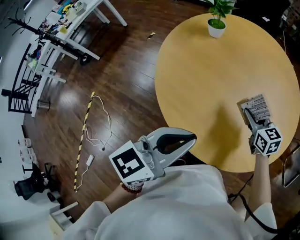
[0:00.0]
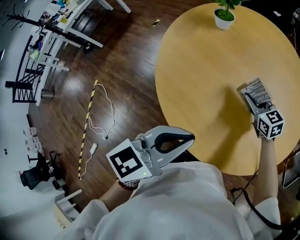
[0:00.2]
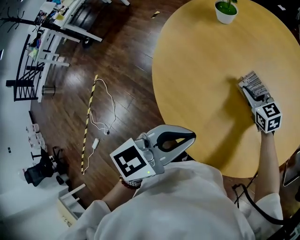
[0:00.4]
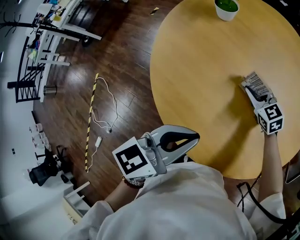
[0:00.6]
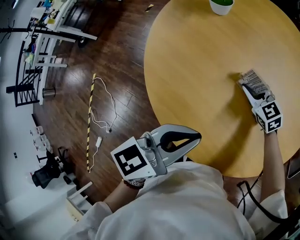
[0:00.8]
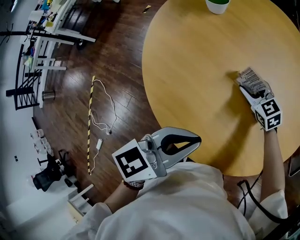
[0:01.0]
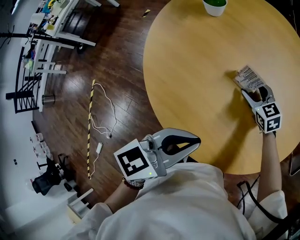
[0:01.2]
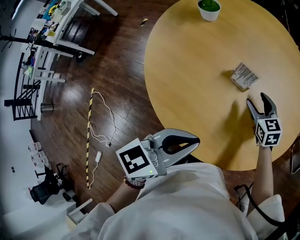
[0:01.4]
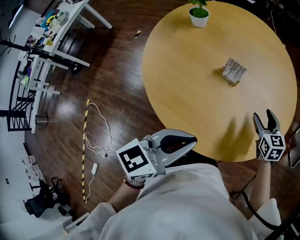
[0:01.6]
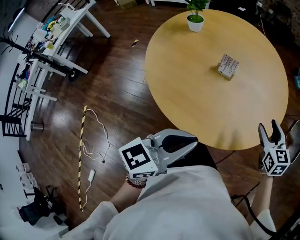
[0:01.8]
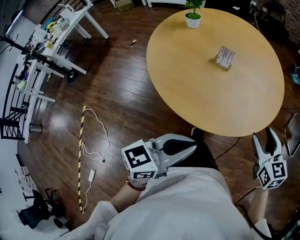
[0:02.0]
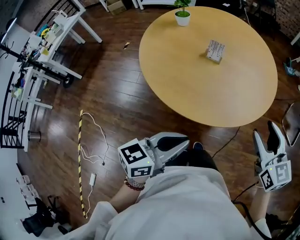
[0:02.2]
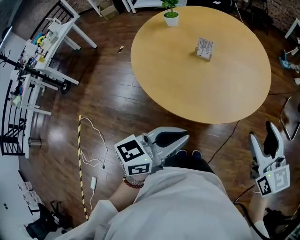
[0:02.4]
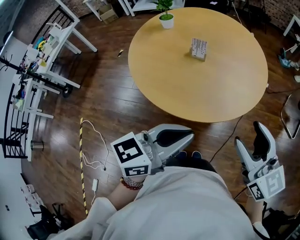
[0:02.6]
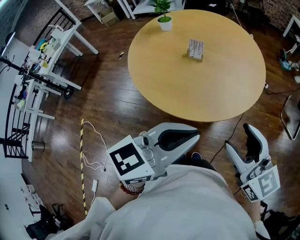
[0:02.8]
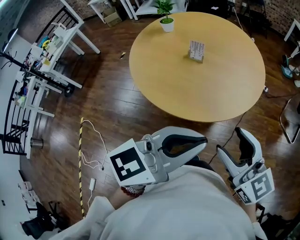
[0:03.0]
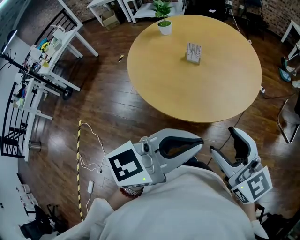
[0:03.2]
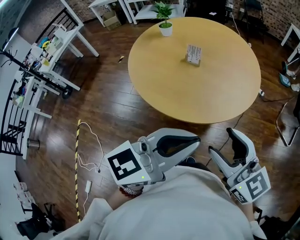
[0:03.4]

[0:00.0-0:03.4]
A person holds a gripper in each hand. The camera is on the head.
0:00.0 to 0:01.6: The right gripper shifts approximately 10 cm to the right, turns by roughly 20 degrees, and opens up. Meanwhile the left gripper heads downward, covering roughly 5 cm.
0:01.6 to 0:03.4: The left gripper heads backward, to the right and upward, covering about 30 cm. The right gripper travels backward and upward by some 50 cm, and rotates about 40 degrees.

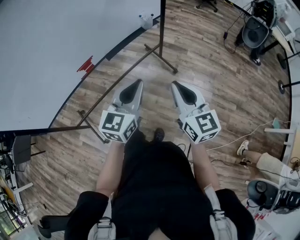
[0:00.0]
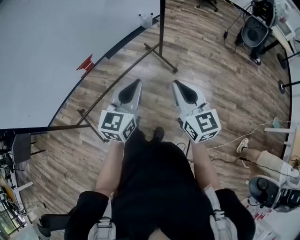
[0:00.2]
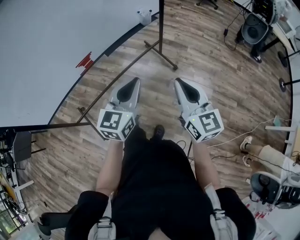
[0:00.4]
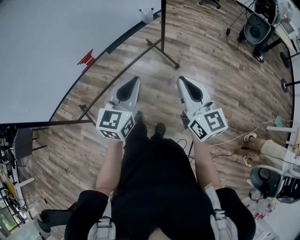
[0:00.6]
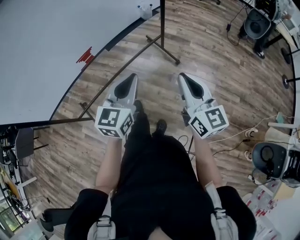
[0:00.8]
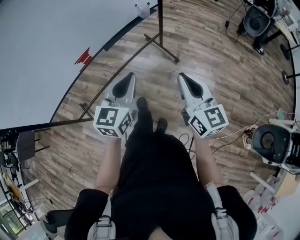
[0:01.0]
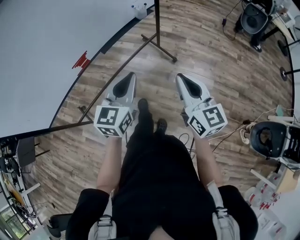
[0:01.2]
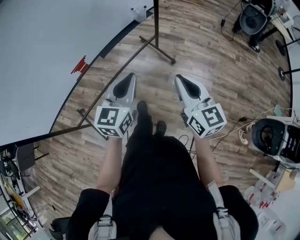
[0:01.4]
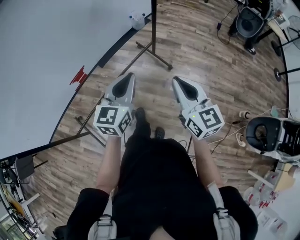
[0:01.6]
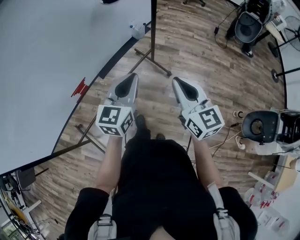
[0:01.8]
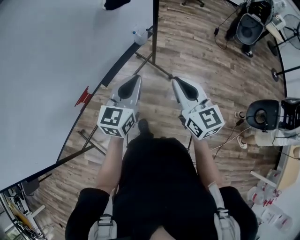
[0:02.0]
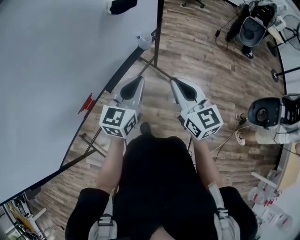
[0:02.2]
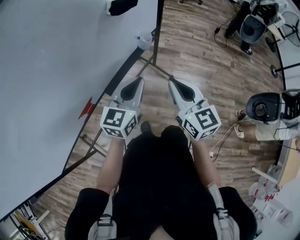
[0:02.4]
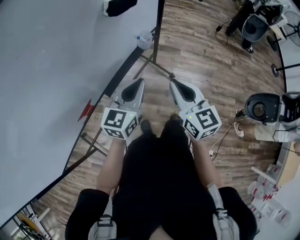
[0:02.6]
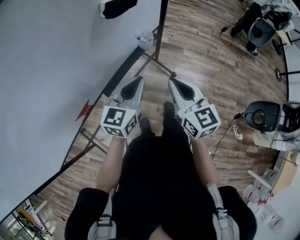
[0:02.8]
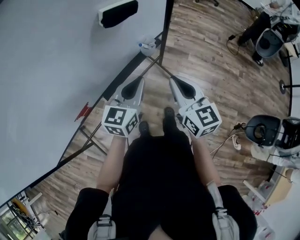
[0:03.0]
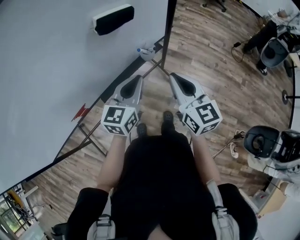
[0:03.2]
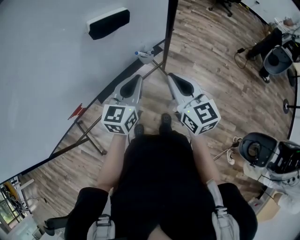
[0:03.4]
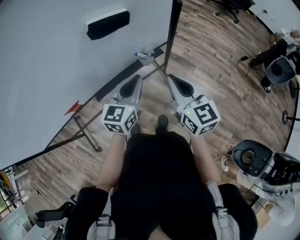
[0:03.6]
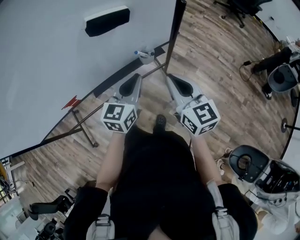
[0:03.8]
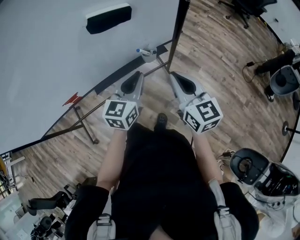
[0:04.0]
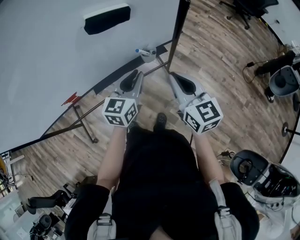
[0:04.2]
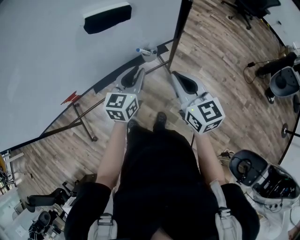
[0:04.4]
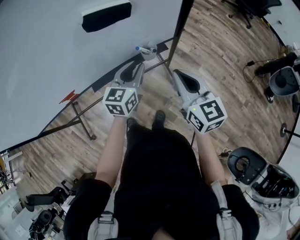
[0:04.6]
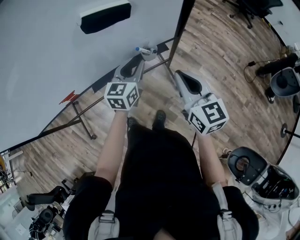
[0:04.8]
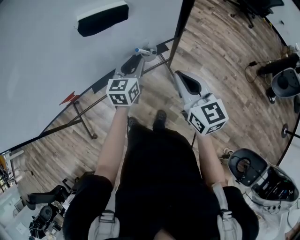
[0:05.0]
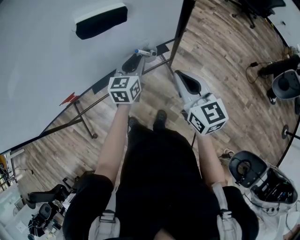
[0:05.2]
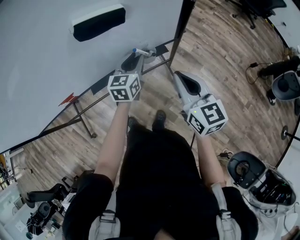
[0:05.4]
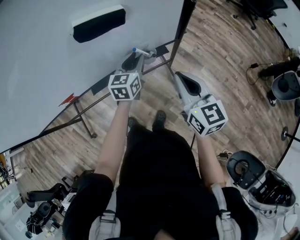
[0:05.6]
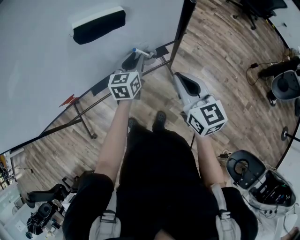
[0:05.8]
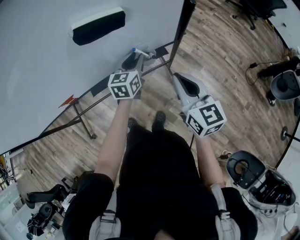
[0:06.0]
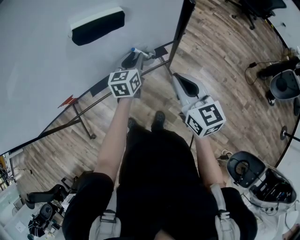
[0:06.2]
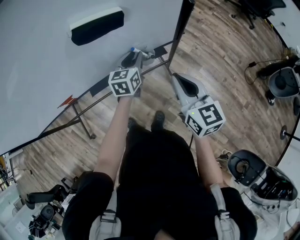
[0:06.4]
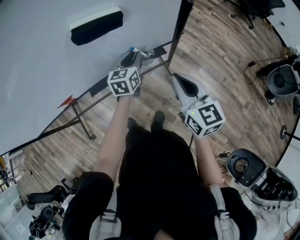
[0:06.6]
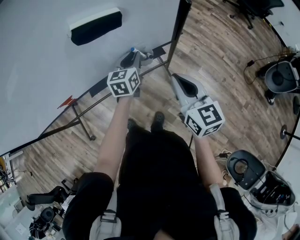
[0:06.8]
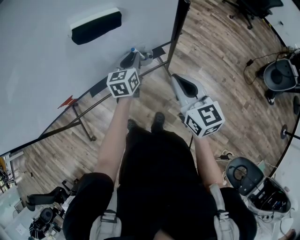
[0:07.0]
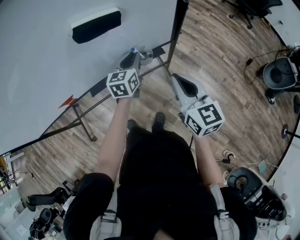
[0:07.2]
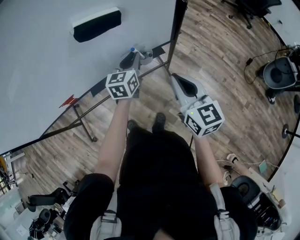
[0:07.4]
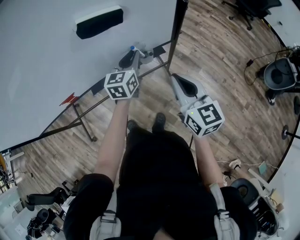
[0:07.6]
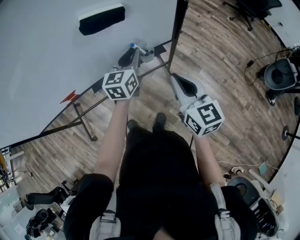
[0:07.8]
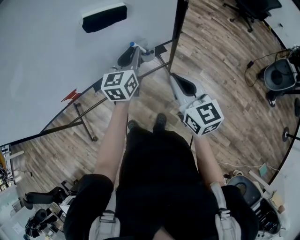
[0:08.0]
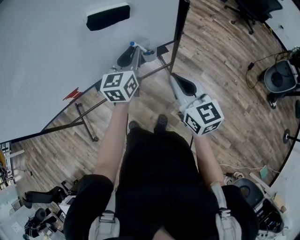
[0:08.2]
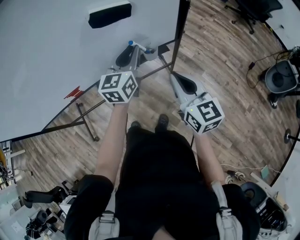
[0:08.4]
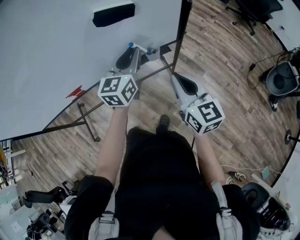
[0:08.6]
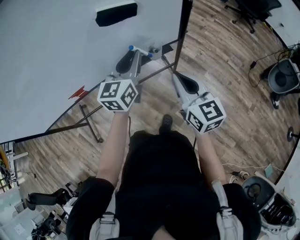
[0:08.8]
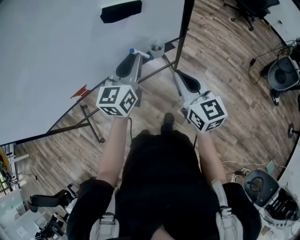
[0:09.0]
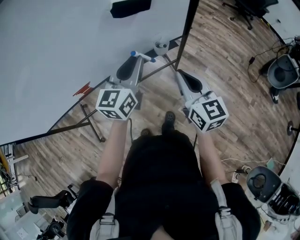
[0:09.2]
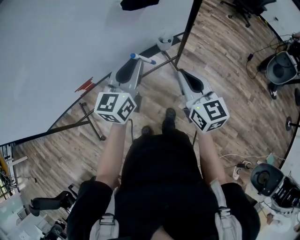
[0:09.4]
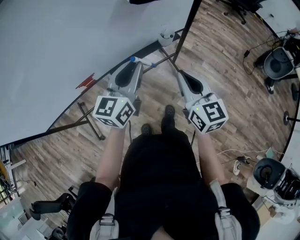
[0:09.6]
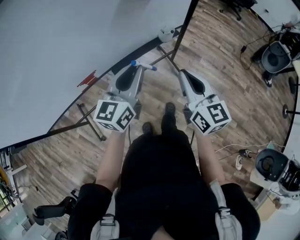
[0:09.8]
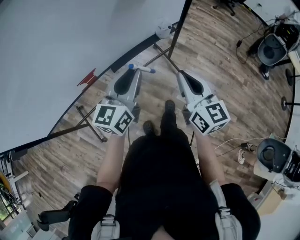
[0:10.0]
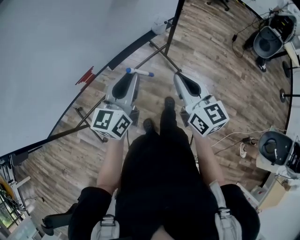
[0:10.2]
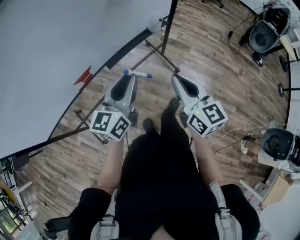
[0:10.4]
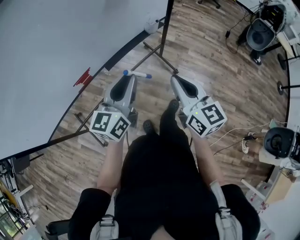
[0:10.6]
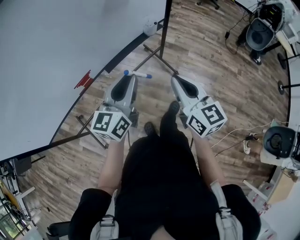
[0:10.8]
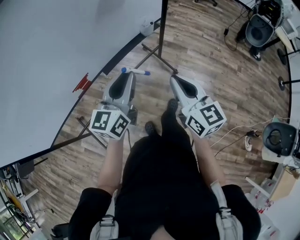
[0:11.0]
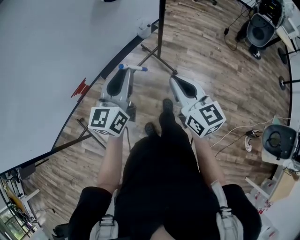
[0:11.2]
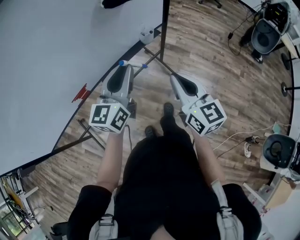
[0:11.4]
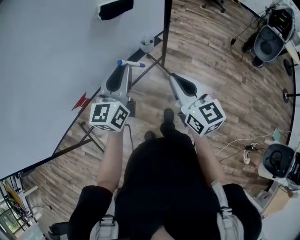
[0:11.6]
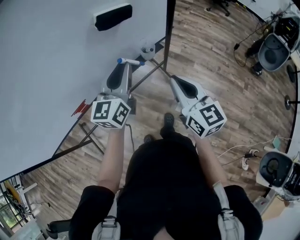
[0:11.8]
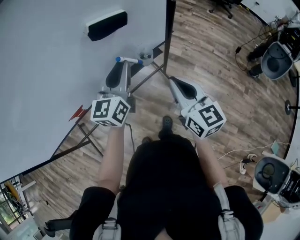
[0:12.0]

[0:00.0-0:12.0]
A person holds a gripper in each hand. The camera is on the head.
0:00.0 to 0:01.6: Both grippers travel together forward, approximately 10 cm.
0:01.6 to 0:03.0: Both grippers travel together forward, approximately 25 cm.
0:03.0 to 0:04.4: The two grippers go about 10 cm forward and to the right. The left gripper rotates about 20 degrees; the right gripper swivels approximately 20 degrees.
0:04.4 to 0:06.0: The left gripper travels forward by about 10 cm.
0:06.0 to 0:07.6: The grippers make only small movements.
0:07.6 to 0:09.0: The left gripper shifts approximately 15 cm upward, backward and to the left; the right gripper is displaced to the left and backward by about 5 cm.
0:09.0 to 0:10.4: The two grippers go roughly 25 cm backward and to the left.
0:10.4 to 0:12.0: The left gripper travels forward by about 25 cm, while the right gripper shifts approximately 25 cm forward and to the right.

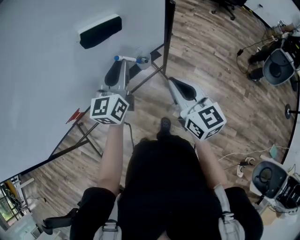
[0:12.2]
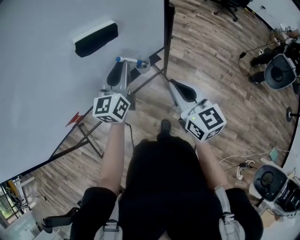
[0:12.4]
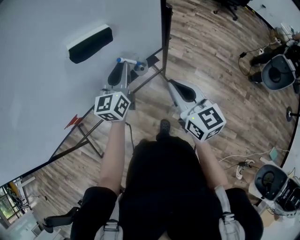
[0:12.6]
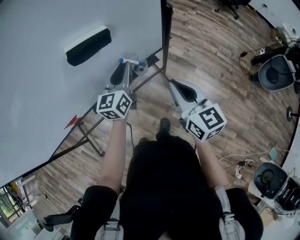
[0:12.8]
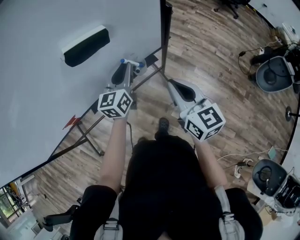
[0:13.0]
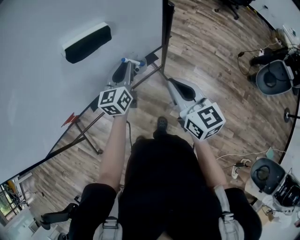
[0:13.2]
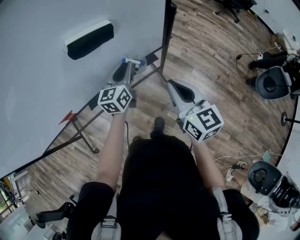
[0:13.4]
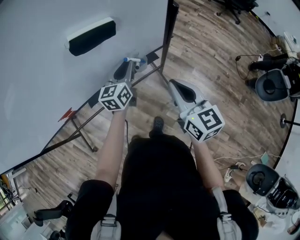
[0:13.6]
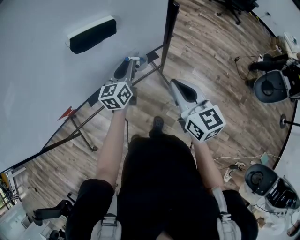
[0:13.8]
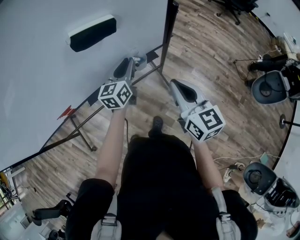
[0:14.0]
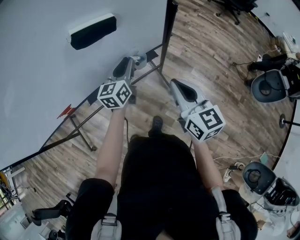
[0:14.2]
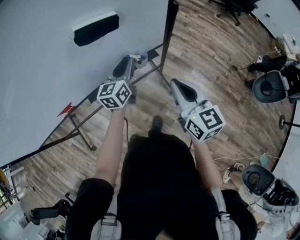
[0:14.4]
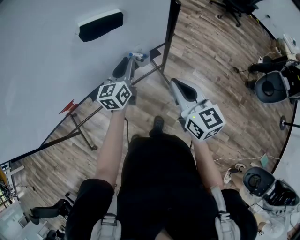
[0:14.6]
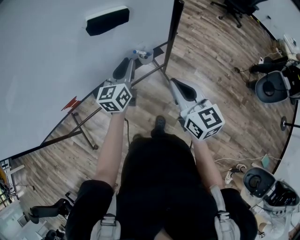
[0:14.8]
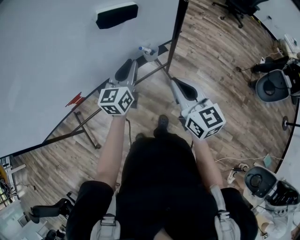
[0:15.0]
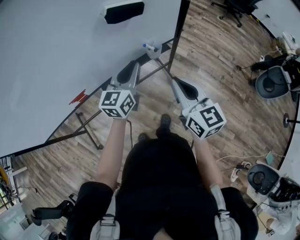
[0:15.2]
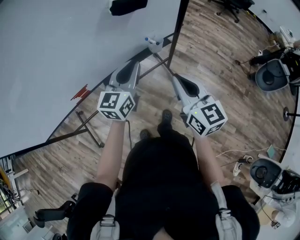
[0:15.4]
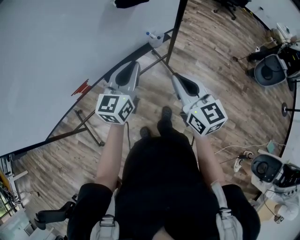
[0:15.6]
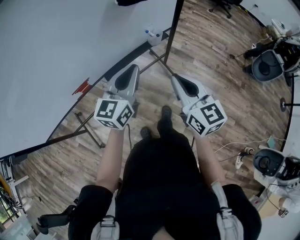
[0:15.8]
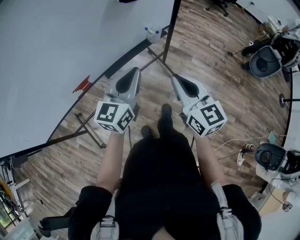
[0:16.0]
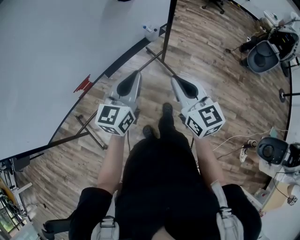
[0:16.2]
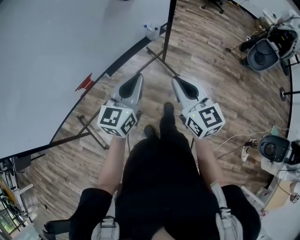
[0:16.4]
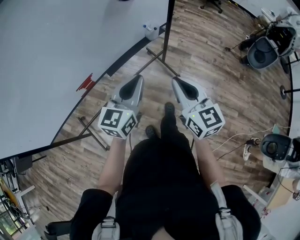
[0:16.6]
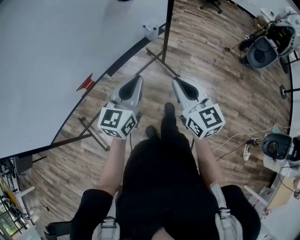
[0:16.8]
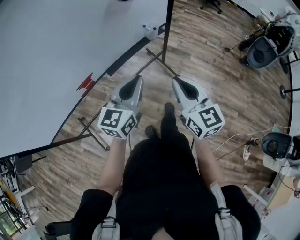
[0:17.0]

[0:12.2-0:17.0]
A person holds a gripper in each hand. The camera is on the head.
0:12.2 to 0:13.8: The left gripper moves downward and forward, approximately 15 cm. Meanwhile the right gripper changes place by roughly 5 cm.
0:13.8 to 0:15.4: The left gripper goes some 20 cm backward, upward and to the left. Meanwhile the right gripper travels backward and to the left by roughly 15 cm.
0:15.4 to 0:17.0: Both grippers travel together backward, approximately 15 cm.

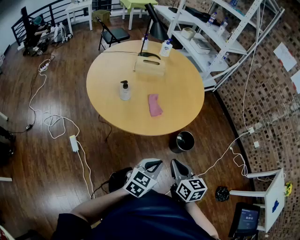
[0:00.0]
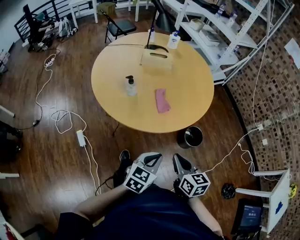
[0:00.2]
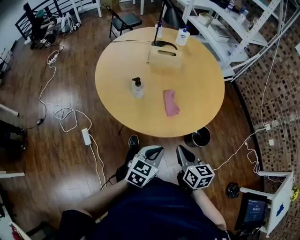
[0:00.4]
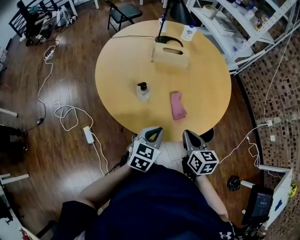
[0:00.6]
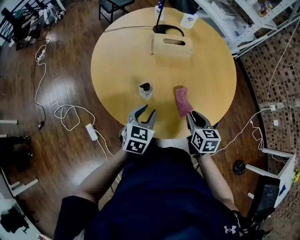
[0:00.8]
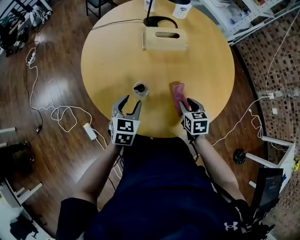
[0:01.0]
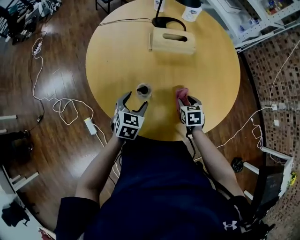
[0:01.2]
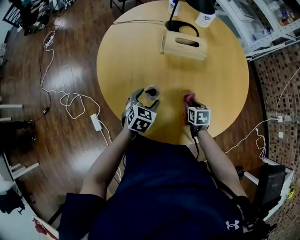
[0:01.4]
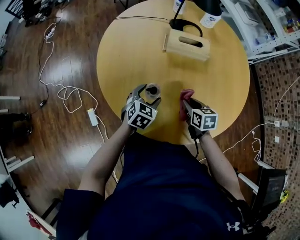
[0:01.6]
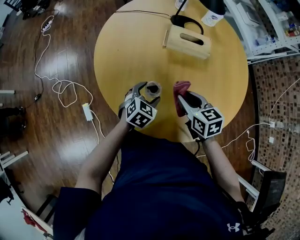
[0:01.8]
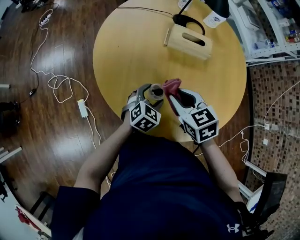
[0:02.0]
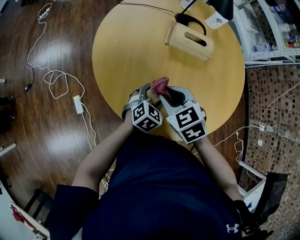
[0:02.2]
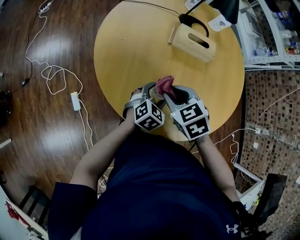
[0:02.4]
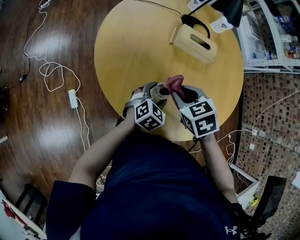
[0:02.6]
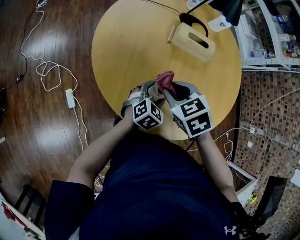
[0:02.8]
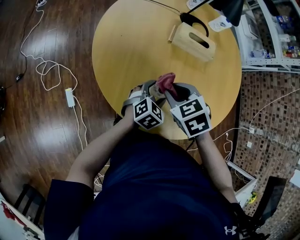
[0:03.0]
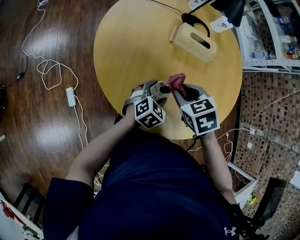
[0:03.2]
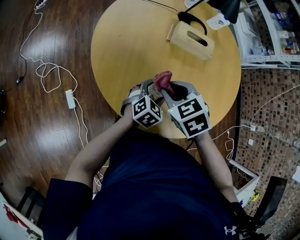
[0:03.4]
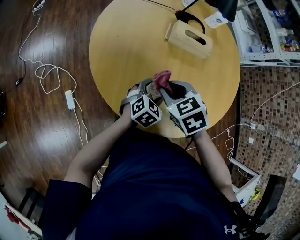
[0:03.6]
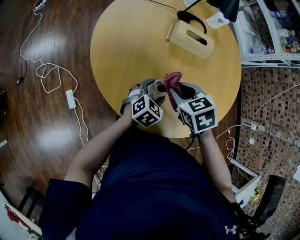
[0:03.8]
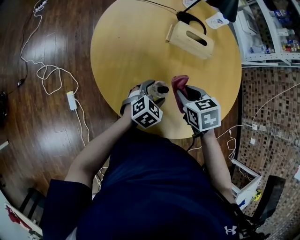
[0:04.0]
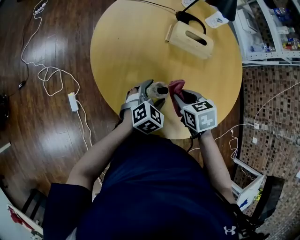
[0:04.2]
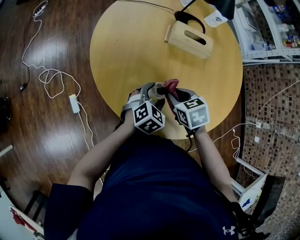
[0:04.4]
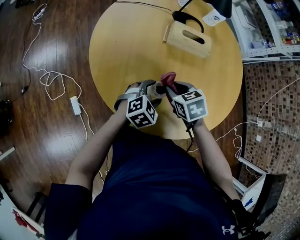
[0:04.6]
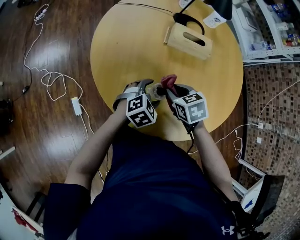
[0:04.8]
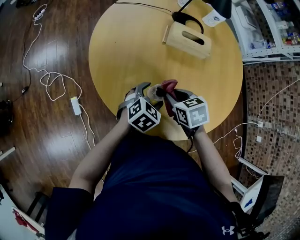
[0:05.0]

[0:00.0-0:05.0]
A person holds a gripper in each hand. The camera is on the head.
0:00.0 to 0:01.6: The right gripper moves forward, about 35 cm, swivels approximately 20 degrees, and opens up. Meanwhile the left gripper goes approximately 40 cm forward and to the left, turns by roughly 30 degrees, and opens its fingers.
0:01.6 to 0:03.4: The left gripper ends up about 5 cm from where it was; the right gripper swings left and right, some 15 cm each way, with 2 reversals, and twists roughly 40 degrees counterclockwise, seen from behind.
0:03.4 to 0:05.0: The right gripper goes roughly 10 cm downward and to the right, and swivels about 20 degrees.
